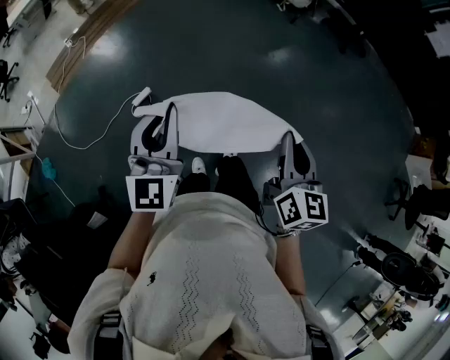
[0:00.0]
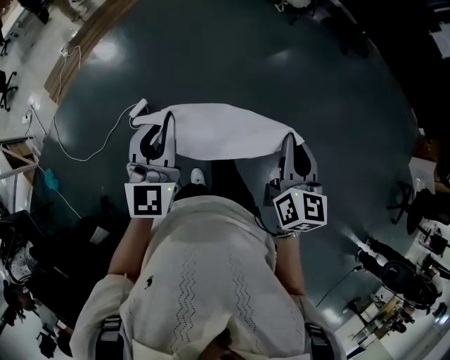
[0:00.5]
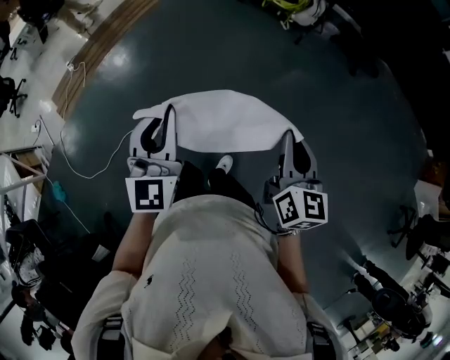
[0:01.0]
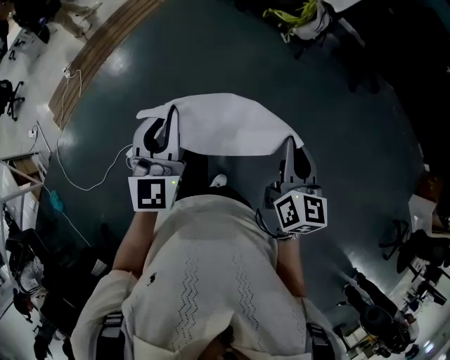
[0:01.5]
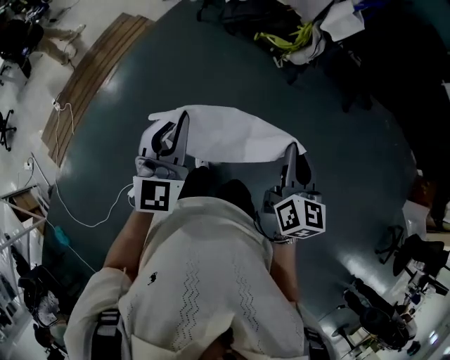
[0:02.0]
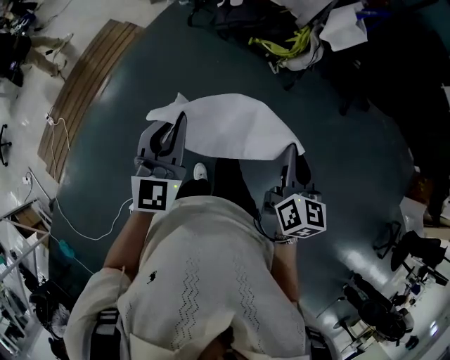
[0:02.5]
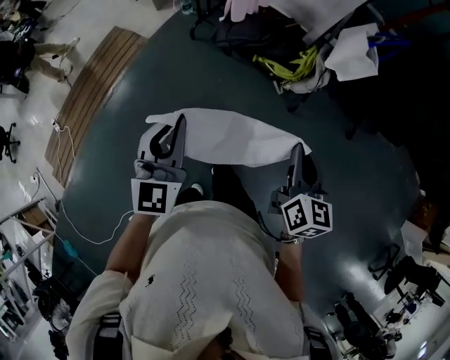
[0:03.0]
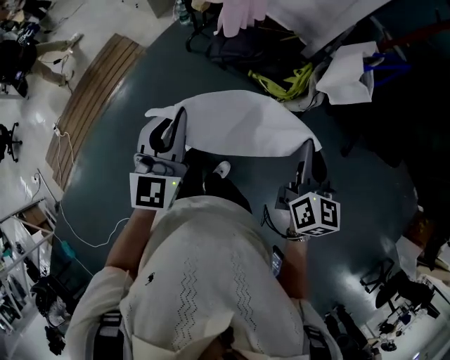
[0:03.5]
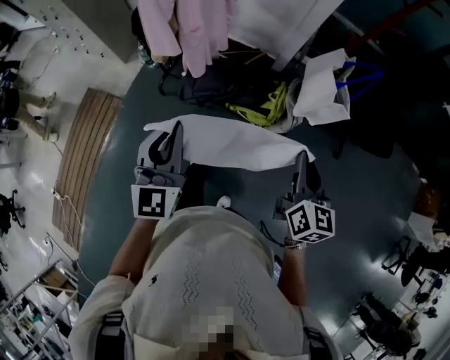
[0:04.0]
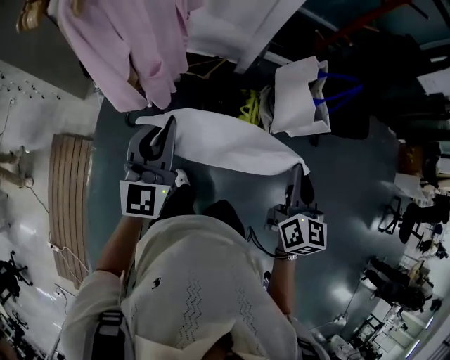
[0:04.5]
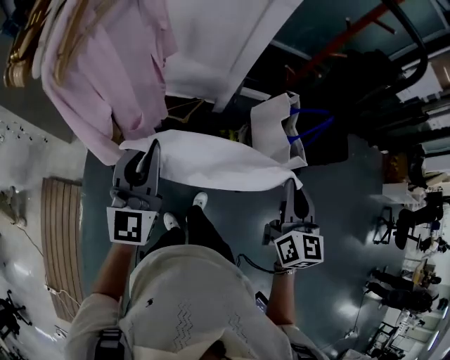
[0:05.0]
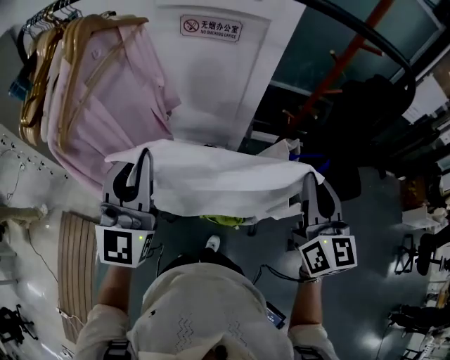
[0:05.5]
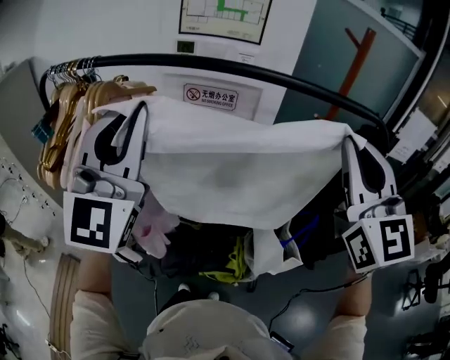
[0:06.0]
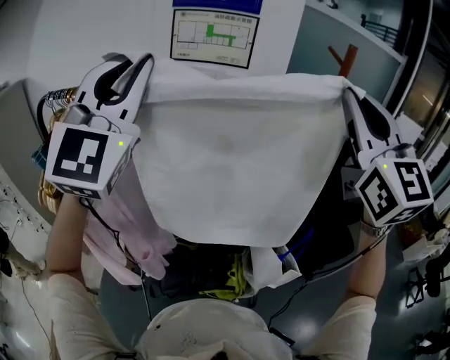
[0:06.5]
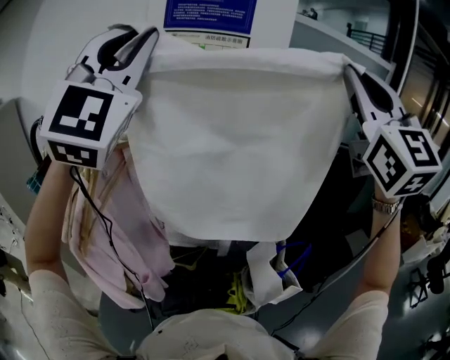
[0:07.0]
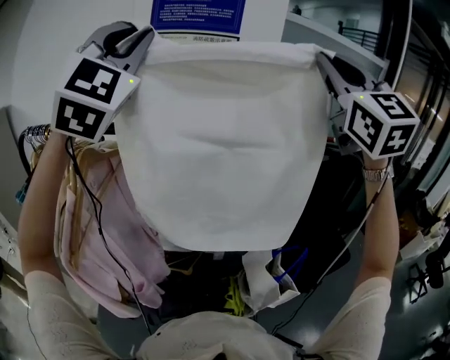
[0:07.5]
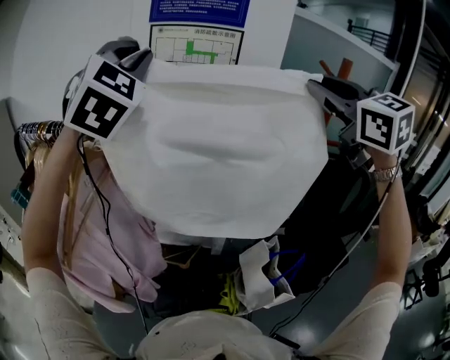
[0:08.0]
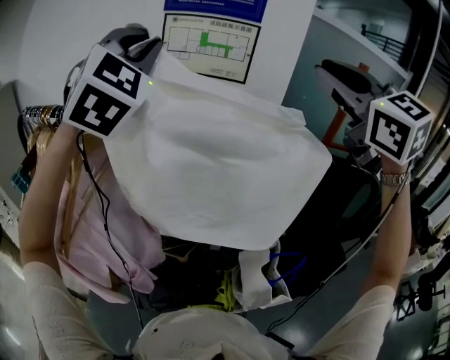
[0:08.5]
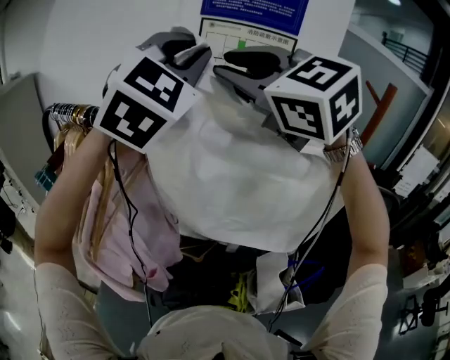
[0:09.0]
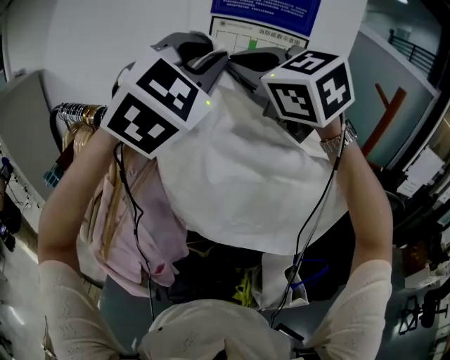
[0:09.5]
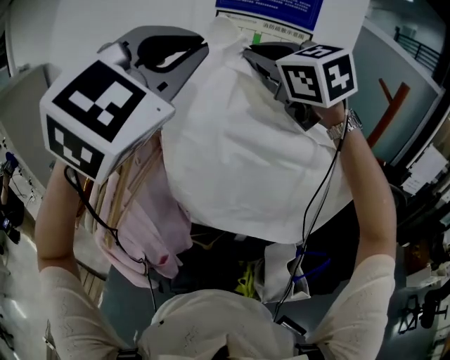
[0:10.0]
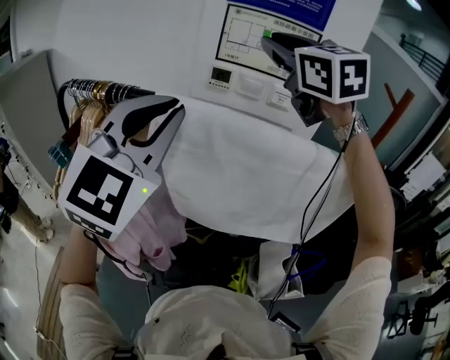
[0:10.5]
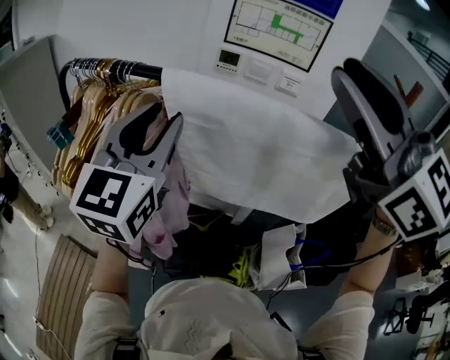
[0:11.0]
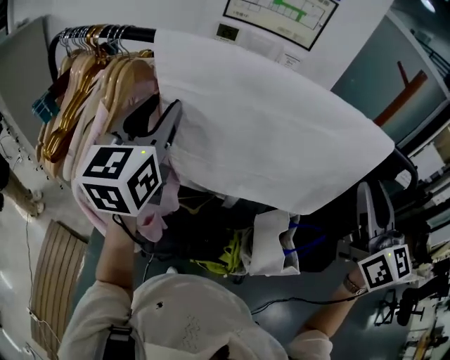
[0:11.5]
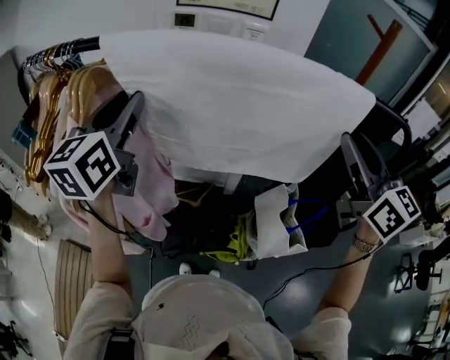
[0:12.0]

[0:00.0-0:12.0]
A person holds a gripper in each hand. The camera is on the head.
0:00.0 to 0:02.0: Both grippers are carried forward, about 80 cm.
0:02.0 to 0:04.0: The two grippers travel together, forward, approximately 70 cm.
0:04.0 to 0:06.0: Both grippers move upward and forward, approximately 60 cm. The left gripper rotates roughly 40 degrees; the right gripper rotates approximately 50 degrees.
0:06.0 to 0:08.0: Both grippers move forward and upward, roughly 25 cm. The left gripper swivels some 40 degrees. The right gripper changes its angle by about 20 degrees.
0:08.0 to 0:10.0: The left gripper moves backward, roughly 10 cm. Meanwhile the right gripper shifts about 30 cm to the left and forward.
0:10.0 to 0:12.0: The right gripper moves to the right, backward and downward, roughly 40 cm, and changes its angle by approximately 40 degrees; the left gripper is displaced downward by approximately 25 cm, twists some 60 degrees counterclockwise, seen from behind, and opens up.

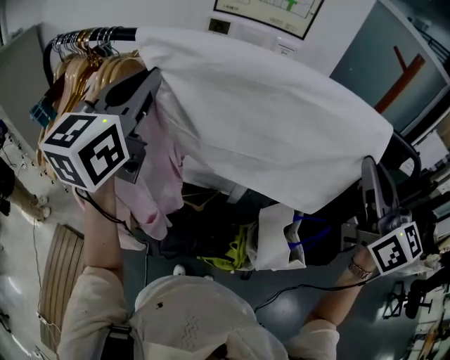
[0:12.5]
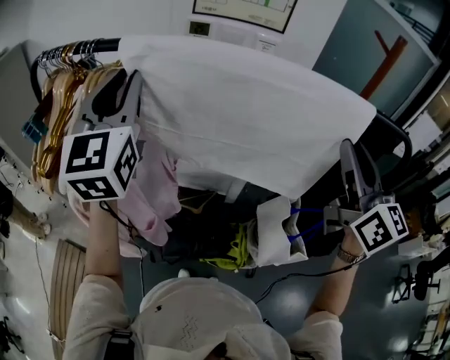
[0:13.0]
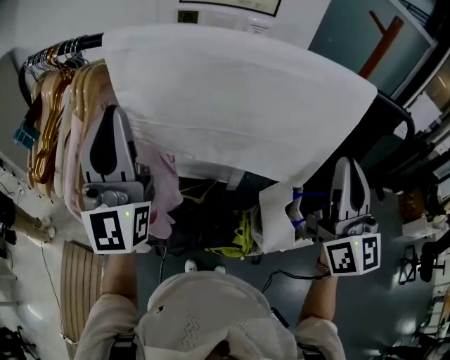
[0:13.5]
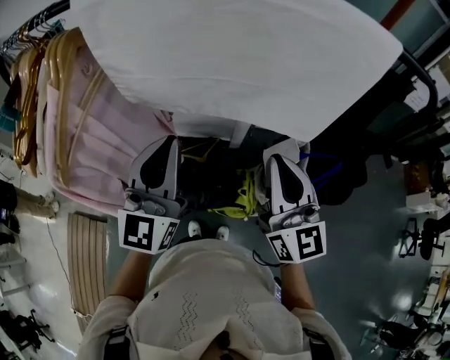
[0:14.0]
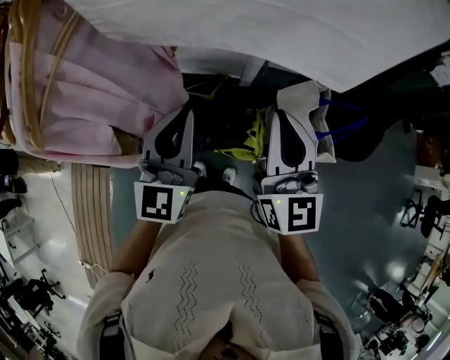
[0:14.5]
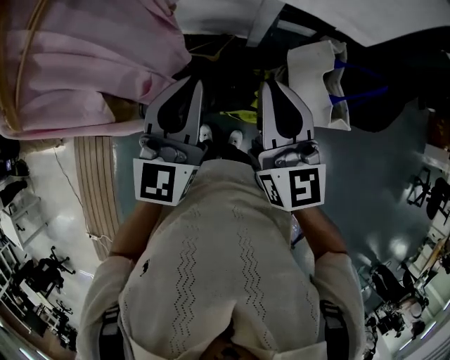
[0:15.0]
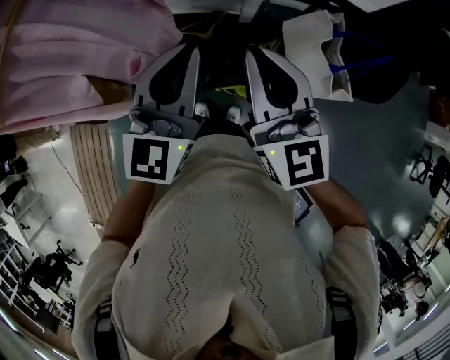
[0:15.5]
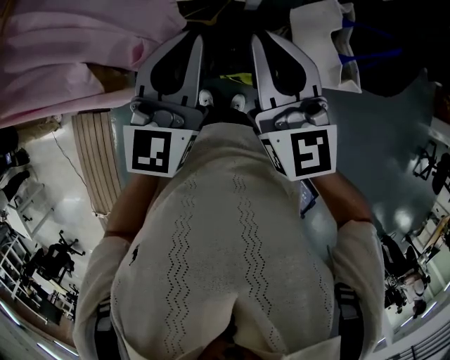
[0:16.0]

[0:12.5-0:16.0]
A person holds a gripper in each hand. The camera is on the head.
0:12.5 to 0:14.5: The left gripper is displaced downward, backward and to the right by approximately 35 cm, while the right gripper moves downward and to the left, about 30 cm.
0:14.5 to 0:16.0: The left gripper moves about 5 cm. Meanwhile the right gripper goes some 5 cm downward.

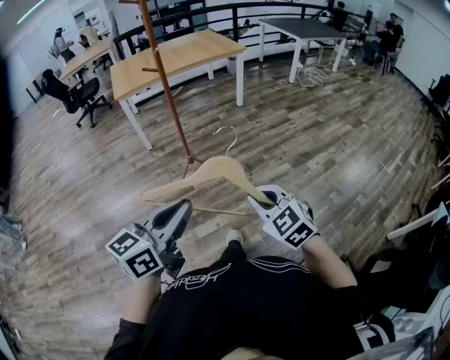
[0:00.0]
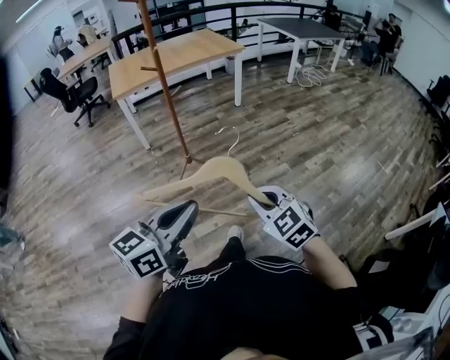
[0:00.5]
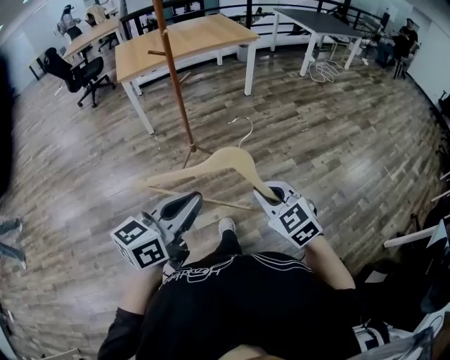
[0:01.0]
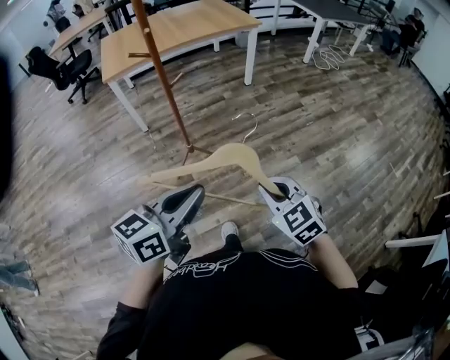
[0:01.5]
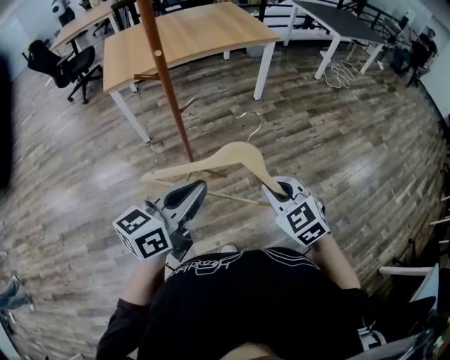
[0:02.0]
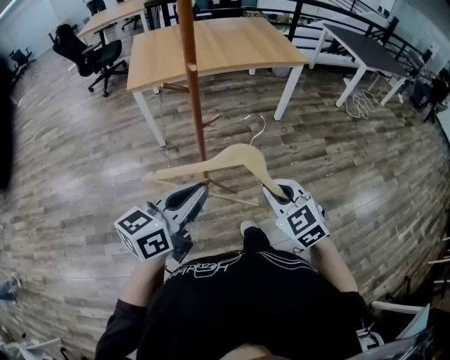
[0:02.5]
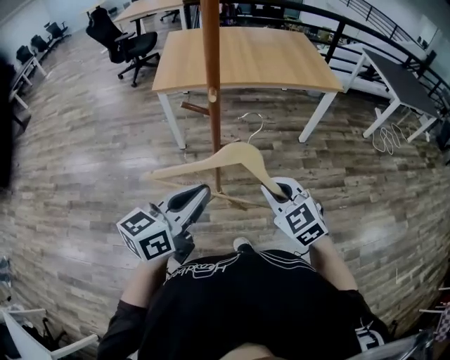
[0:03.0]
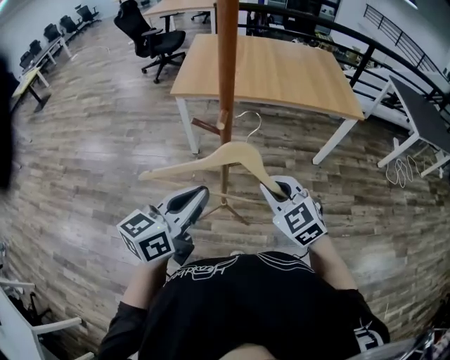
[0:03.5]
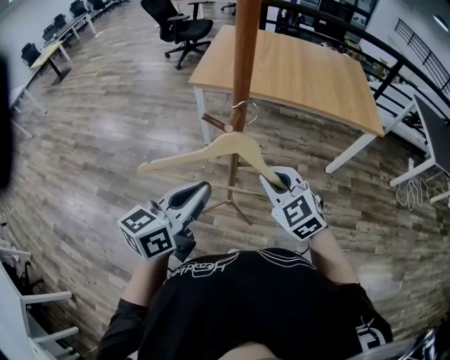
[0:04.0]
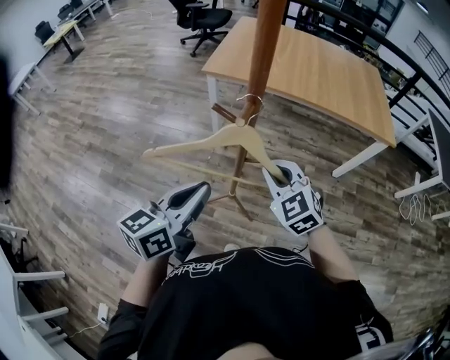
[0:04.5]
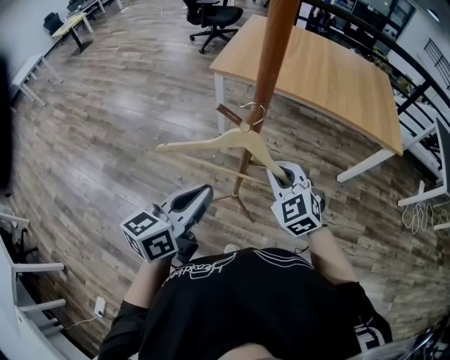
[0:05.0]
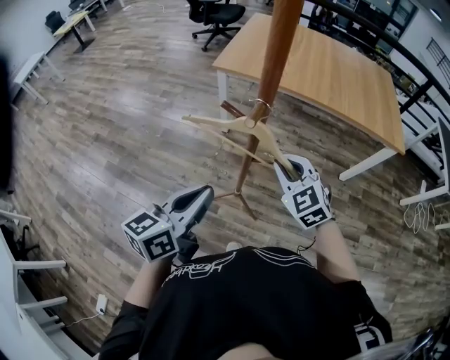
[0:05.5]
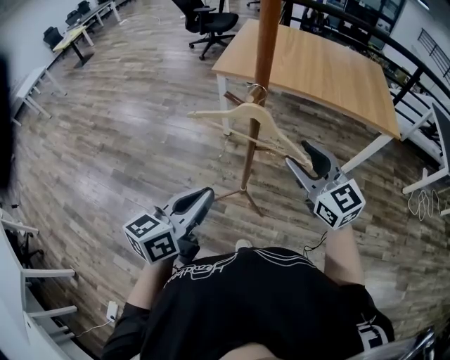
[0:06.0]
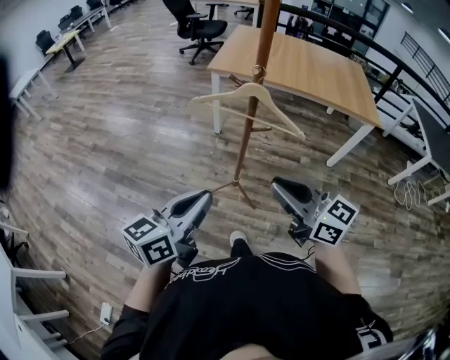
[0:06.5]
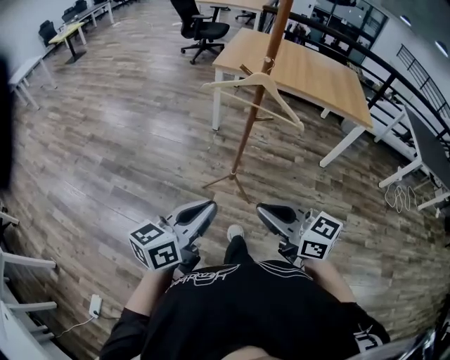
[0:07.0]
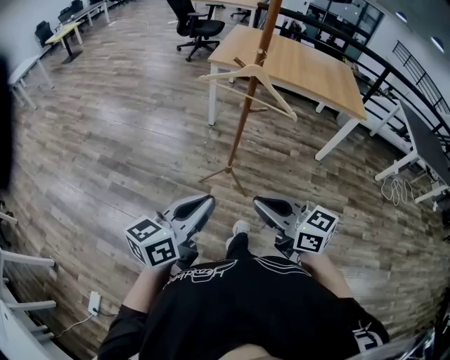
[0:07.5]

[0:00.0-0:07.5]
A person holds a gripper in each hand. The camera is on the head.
0:00.0 to 0:02.0: The grippers both shift forward by about 35 cm.
0:02.0 to 0:04.0: The right gripper ends up roughly 35 cm from where it was, and rotates approximately 40 degrees. Meanwhile the left gripper moves about 20 cm, and swivels roughly 40 degrees.
0:04.0 to 0:05.5: The right gripper heads forward, covering roughly 5 cm. The left gripper shifts by some 5 cm.
0:05.5 to 0:07.5: The grippers both shift backward by about 35 cm. The right gripper rotates approximately 50 degrees, and opens and closes again.

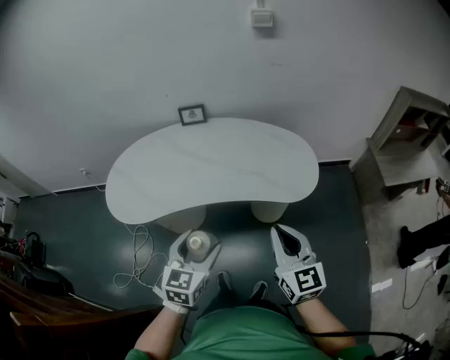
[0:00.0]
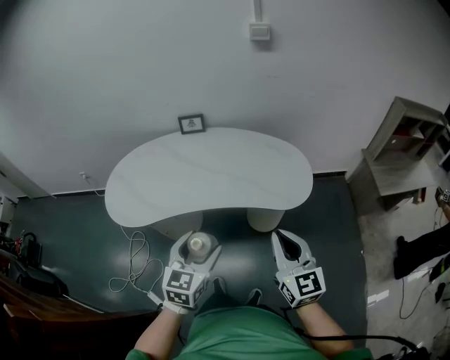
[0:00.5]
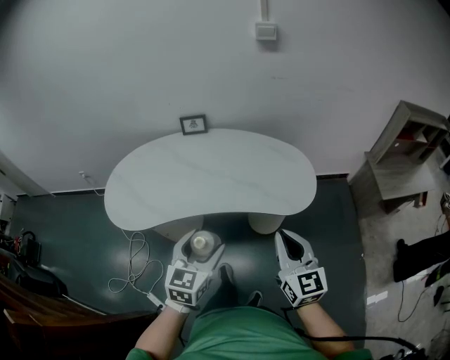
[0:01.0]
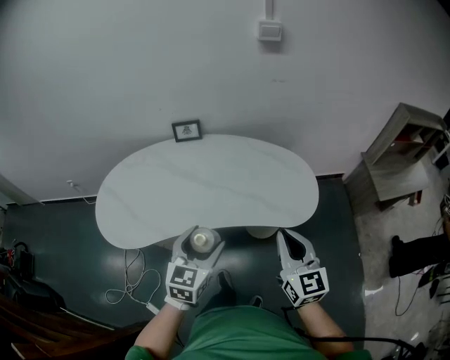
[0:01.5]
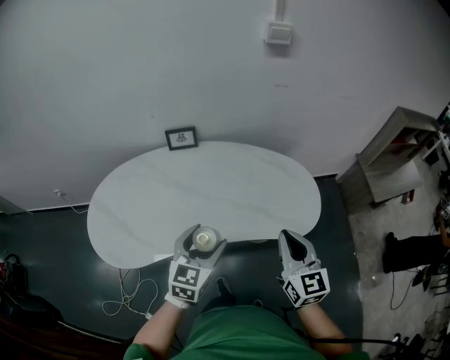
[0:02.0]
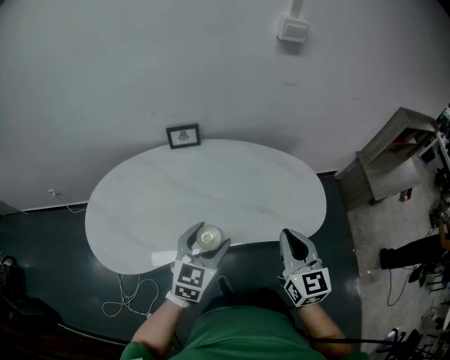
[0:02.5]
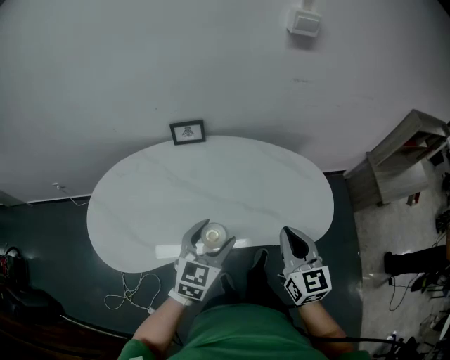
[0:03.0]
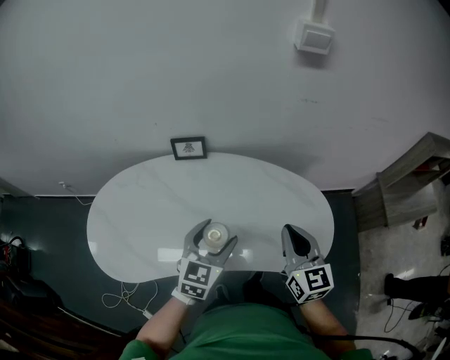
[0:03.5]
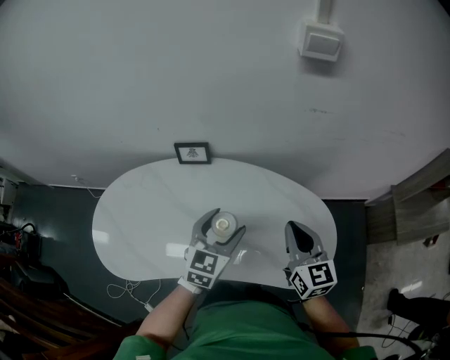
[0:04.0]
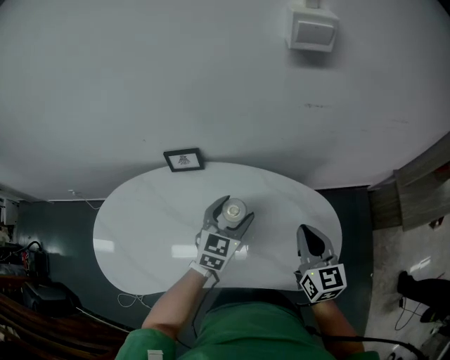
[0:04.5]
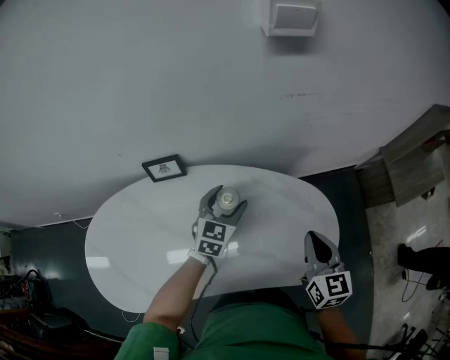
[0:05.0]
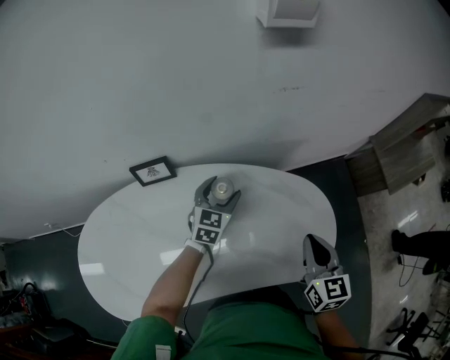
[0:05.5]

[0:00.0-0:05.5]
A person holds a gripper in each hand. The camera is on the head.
0:00.0 to 0:02.0: The two grippers go roughly 20 cm forward.
0:02.0 to 0:03.5: Both grippers move forward, roughly 15 cm.
0:03.5 to 0:05.5: The left gripper shifts roughly 30 cm forward and downward. Meanwhile the right gripper travels to the right, downward and forward by some 15 cm, and changes its angle by approximately 20 degrees.
